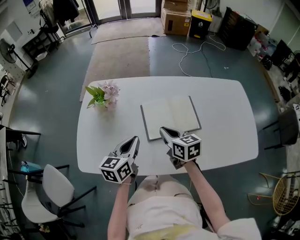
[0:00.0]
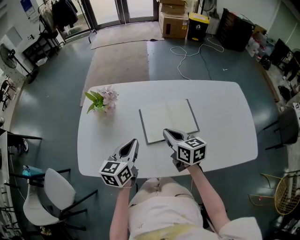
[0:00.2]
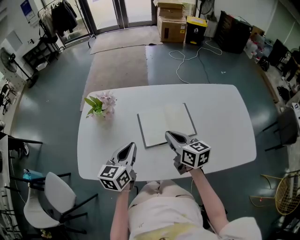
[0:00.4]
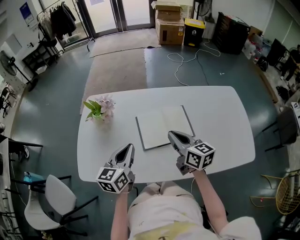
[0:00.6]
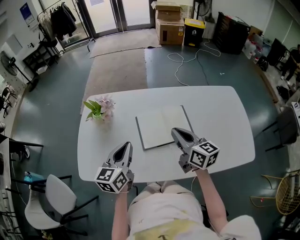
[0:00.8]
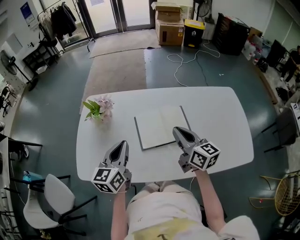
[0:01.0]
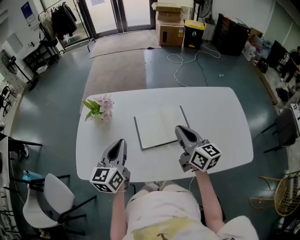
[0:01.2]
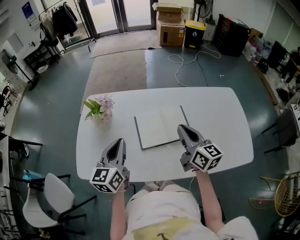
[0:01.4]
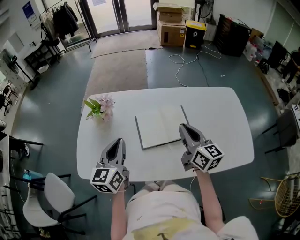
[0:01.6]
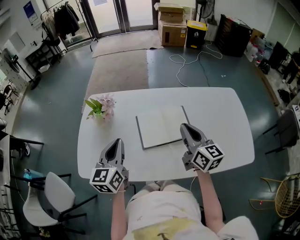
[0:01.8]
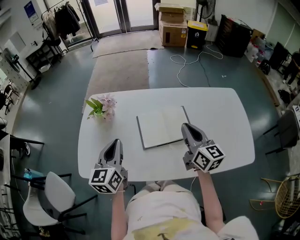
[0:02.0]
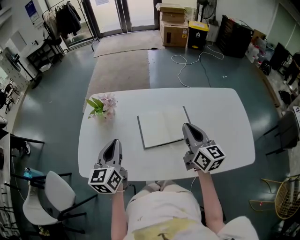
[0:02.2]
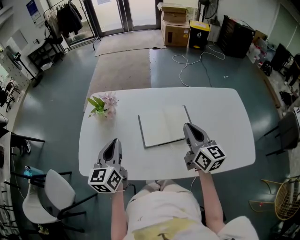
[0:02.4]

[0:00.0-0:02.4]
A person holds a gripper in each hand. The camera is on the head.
0:00.0 to 0:01.2: The right gripper travels upward and to the right by approximately 15 cm, and rotates some 20 degrees, while the left gripper is displaced upward by some 10 cm.
0:01.2 to 0:02.4: The grippers make only small movements.

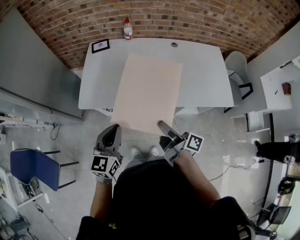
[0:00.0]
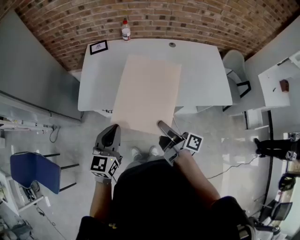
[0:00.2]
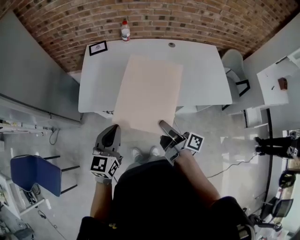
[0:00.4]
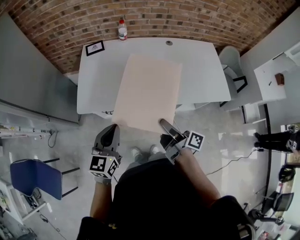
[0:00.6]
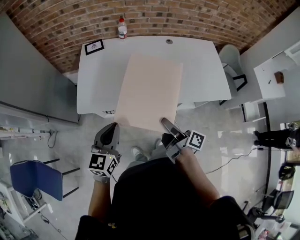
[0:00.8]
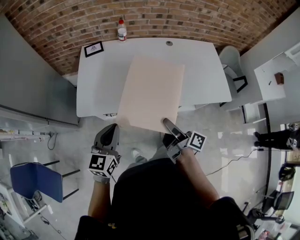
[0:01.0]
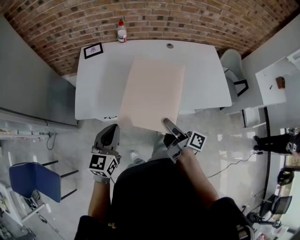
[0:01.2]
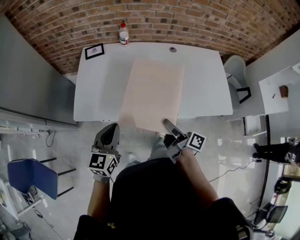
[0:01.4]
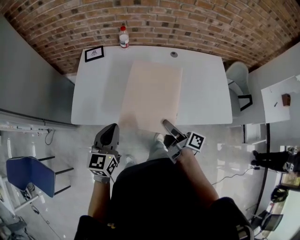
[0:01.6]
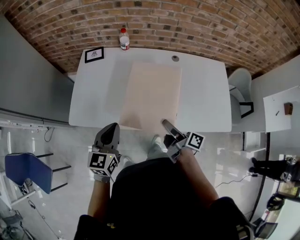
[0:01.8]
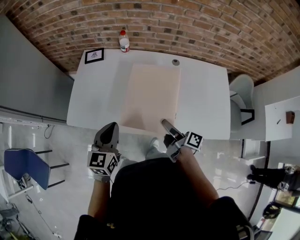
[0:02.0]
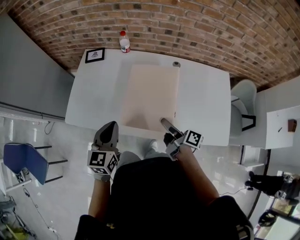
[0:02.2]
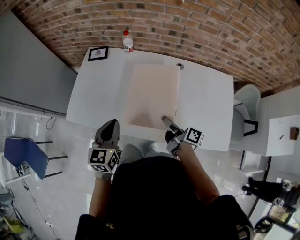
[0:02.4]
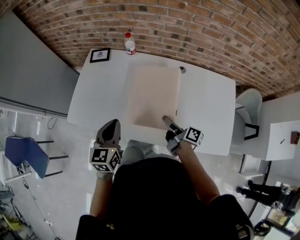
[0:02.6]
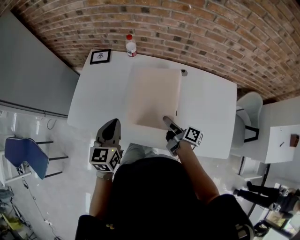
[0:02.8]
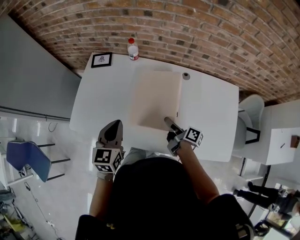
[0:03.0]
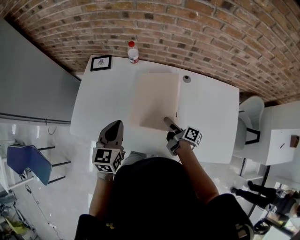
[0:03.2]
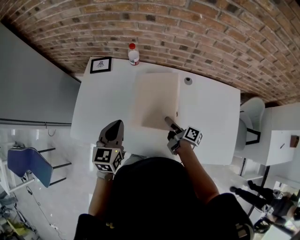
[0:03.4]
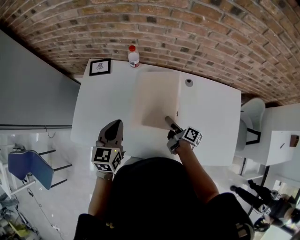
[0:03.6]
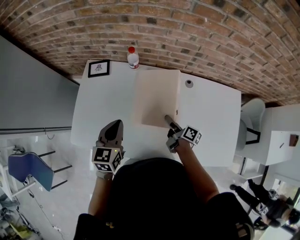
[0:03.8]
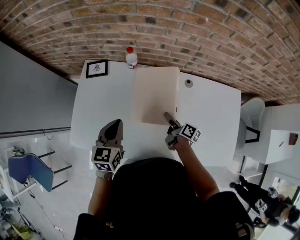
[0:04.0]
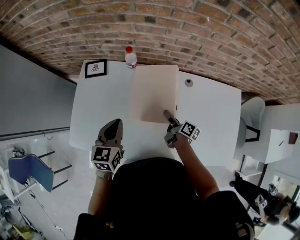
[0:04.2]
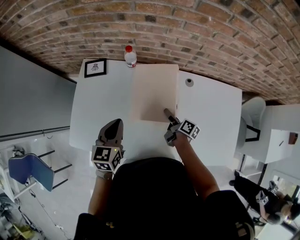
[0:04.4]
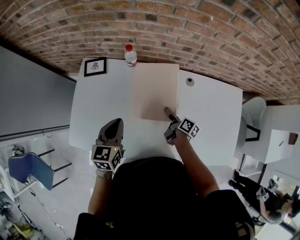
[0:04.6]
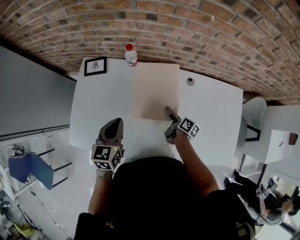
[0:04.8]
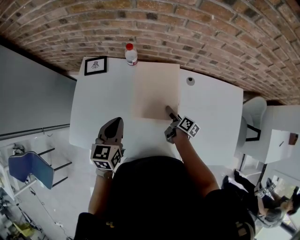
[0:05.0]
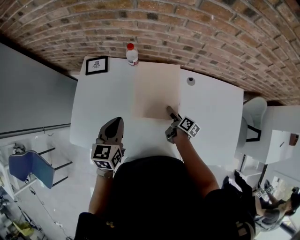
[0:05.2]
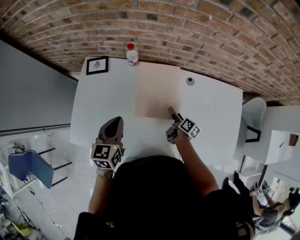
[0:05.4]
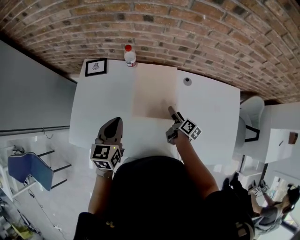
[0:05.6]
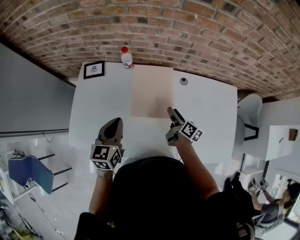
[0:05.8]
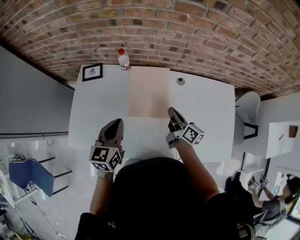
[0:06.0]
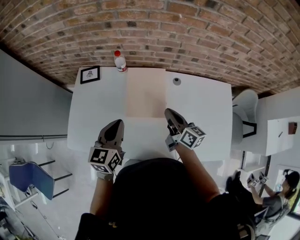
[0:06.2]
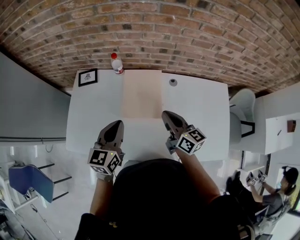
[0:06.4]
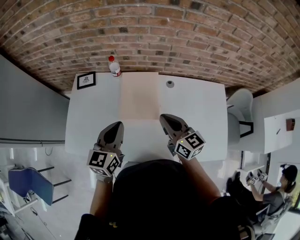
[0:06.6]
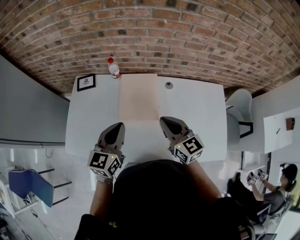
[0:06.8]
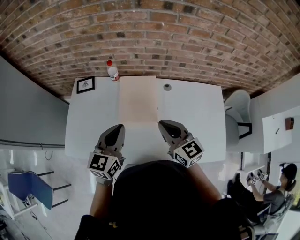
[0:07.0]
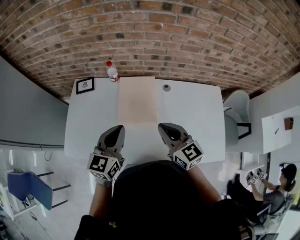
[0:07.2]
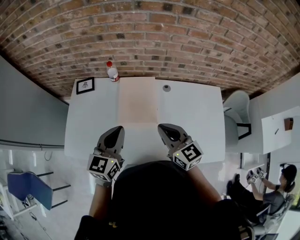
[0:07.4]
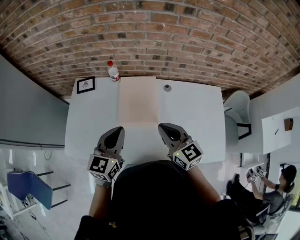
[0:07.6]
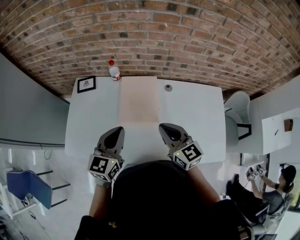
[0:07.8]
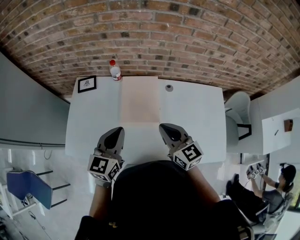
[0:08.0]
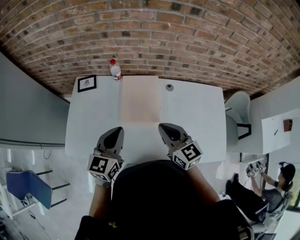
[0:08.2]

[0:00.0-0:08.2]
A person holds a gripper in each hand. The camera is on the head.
0:00.0 to 0:01.6: The right gripper shifts roughly 15 cm forward, to the right and downward. Meanwhile the left gripper moves forward, approximately 10 cm.
0:01.6 to 0:03.2: The left gripper travels forward and to the right by approximately 20 cm; the right gripper travels forward, to the right and downward by roughly 25 cm.
0:03.2 to 0:05.0: The left gripper goes about 10 cm forward. Meanwhile the right gripper moves forward and downward, about 15 cm, and changes its angle by approximately 20 degrees.
0:05.0 to 0:06.6: The left gripper is displaced upward, to the right and backward by about 15 cm. The right gripper is displaced upward by roughly 30 cm, twists roughly 50 degrees counterclockwise, seen from behind, and closes.
0:06.6 to 0:08.2: The grippers stay close to where they were, moving slightly.

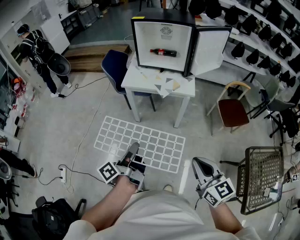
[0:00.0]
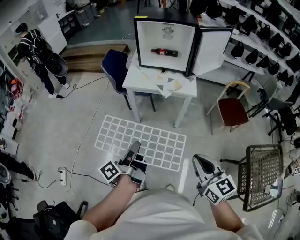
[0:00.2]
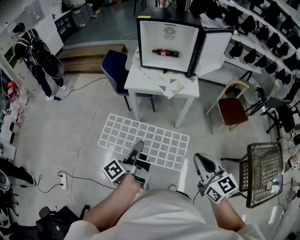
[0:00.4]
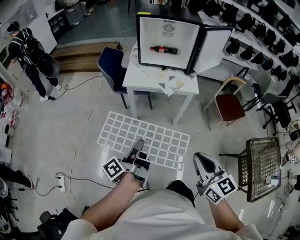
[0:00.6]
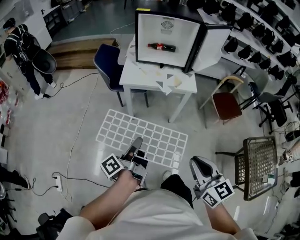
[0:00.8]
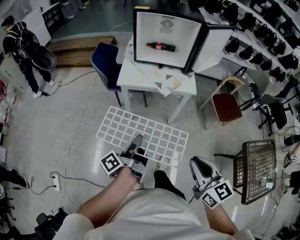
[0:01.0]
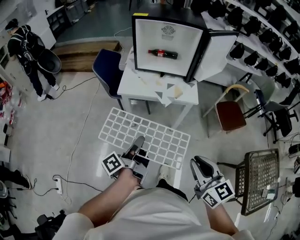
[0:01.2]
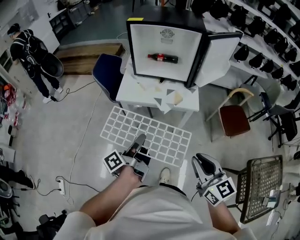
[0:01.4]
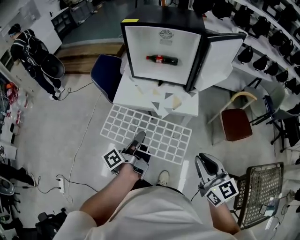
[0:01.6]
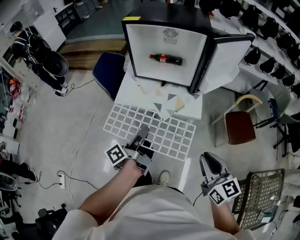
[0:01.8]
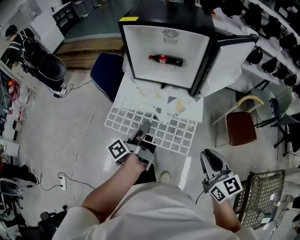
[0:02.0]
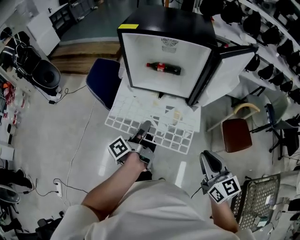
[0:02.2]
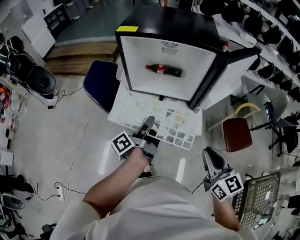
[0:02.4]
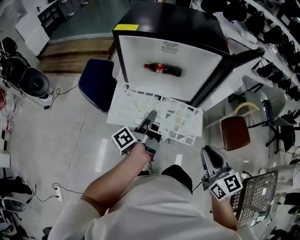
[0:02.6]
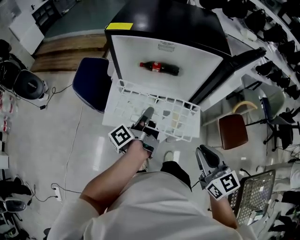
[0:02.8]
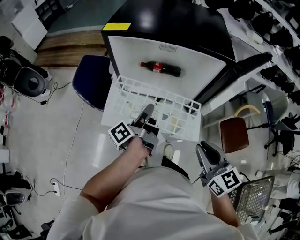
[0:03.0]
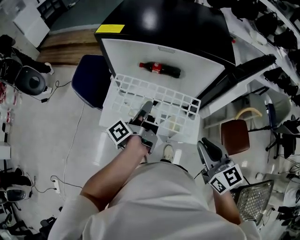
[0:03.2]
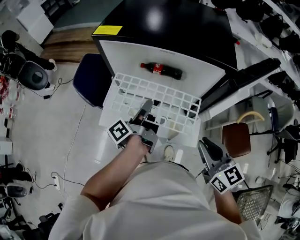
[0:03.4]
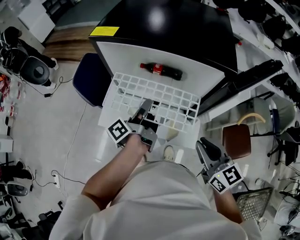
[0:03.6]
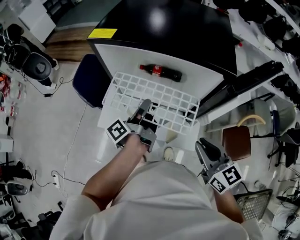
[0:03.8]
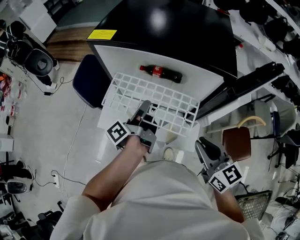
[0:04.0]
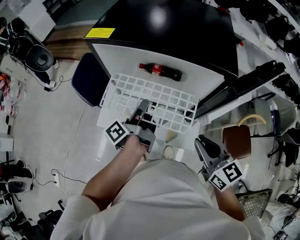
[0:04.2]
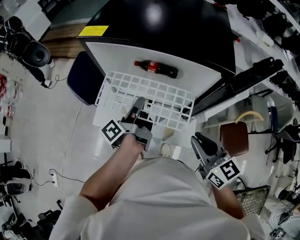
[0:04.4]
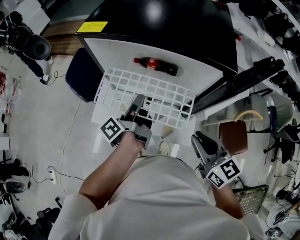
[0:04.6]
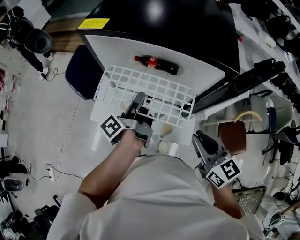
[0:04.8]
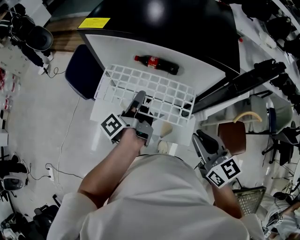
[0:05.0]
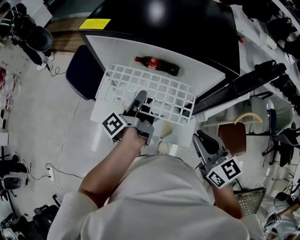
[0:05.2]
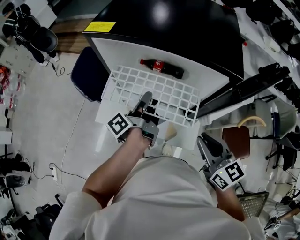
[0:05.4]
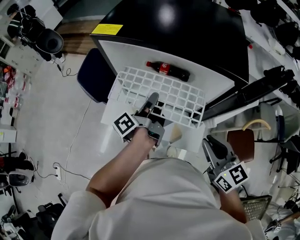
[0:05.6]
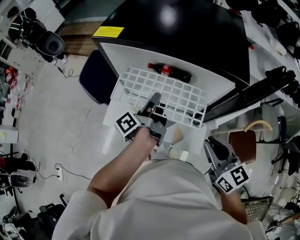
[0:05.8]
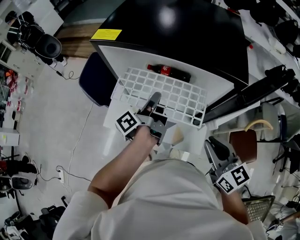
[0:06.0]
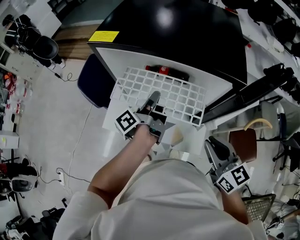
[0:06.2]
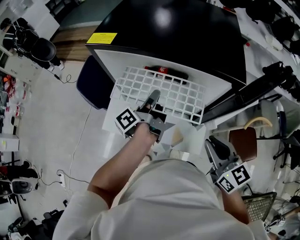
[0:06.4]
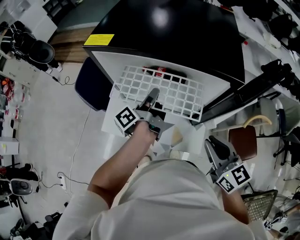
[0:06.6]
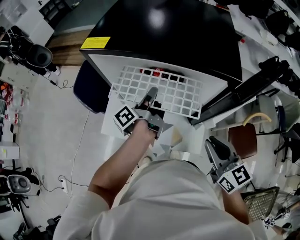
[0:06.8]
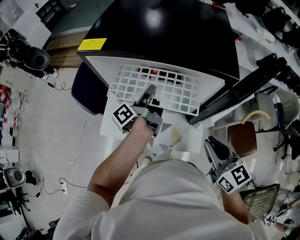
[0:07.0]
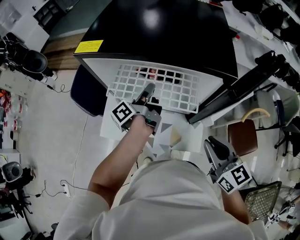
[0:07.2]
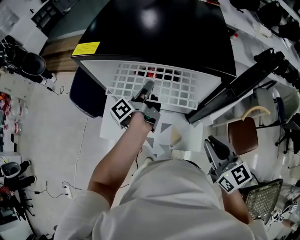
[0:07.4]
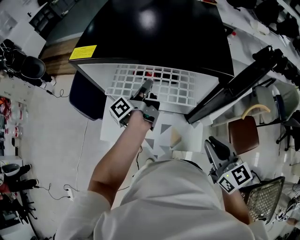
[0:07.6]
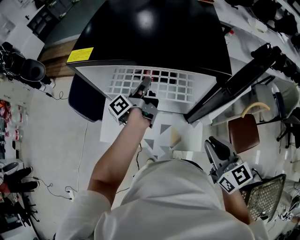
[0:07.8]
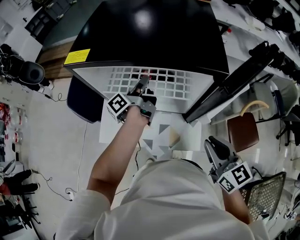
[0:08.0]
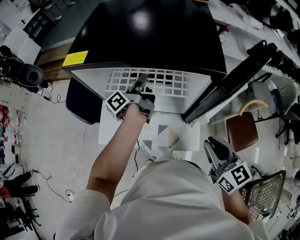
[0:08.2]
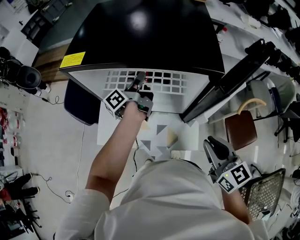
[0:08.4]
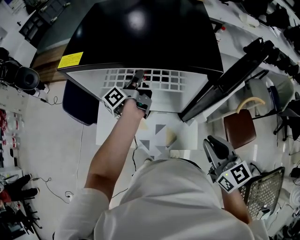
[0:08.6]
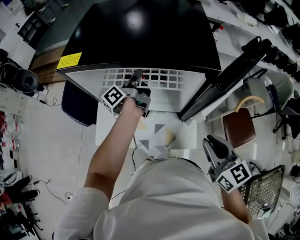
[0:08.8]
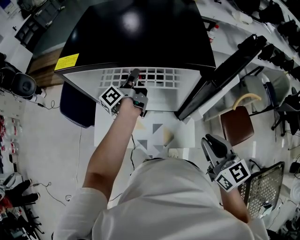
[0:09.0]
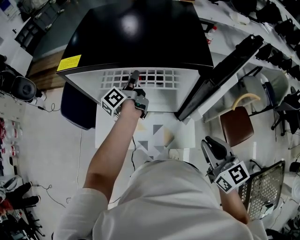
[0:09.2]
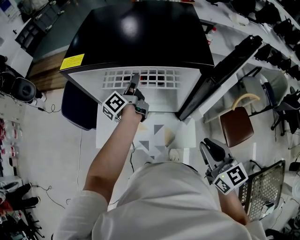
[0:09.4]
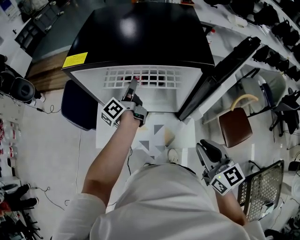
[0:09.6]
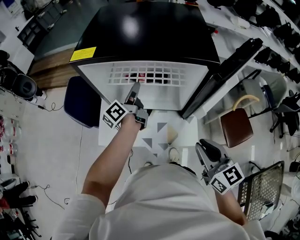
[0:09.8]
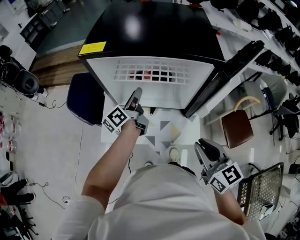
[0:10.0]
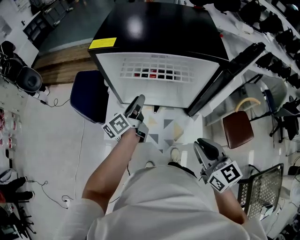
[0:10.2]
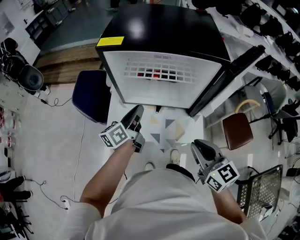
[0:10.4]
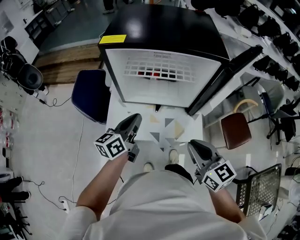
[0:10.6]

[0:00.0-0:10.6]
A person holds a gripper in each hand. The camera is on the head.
0:00.0 to 0:01.6: The right gripper moves approximately 20 cm.
0:01.6 to 0:03.0: The right gripper shifts by approximately 25 cm.
0:03.0 to 0:04.6: The right gripper shifts by about 10 cm.
0:09.0 to 0:10.6: The right gripper changes place by roughly 15 cm.

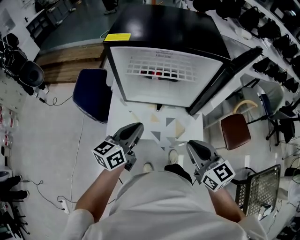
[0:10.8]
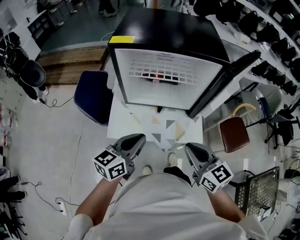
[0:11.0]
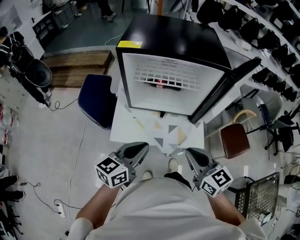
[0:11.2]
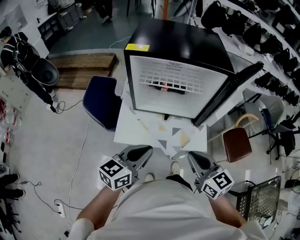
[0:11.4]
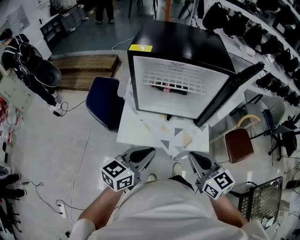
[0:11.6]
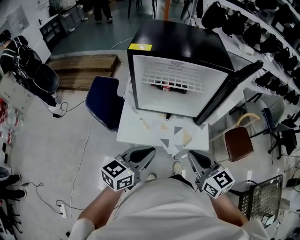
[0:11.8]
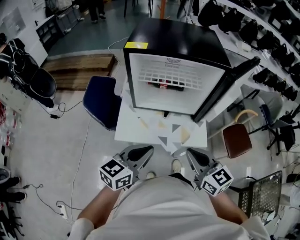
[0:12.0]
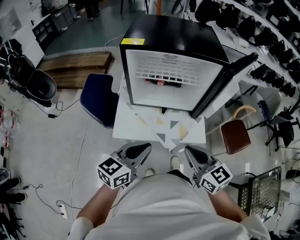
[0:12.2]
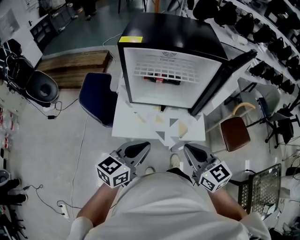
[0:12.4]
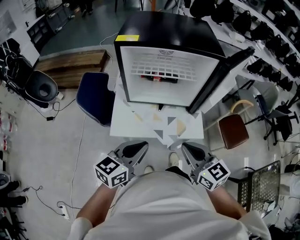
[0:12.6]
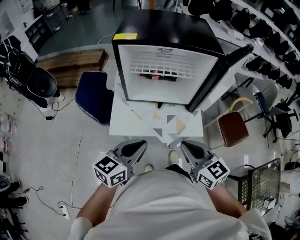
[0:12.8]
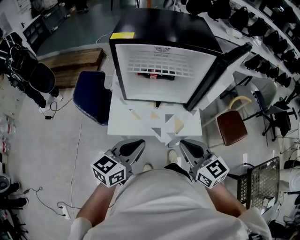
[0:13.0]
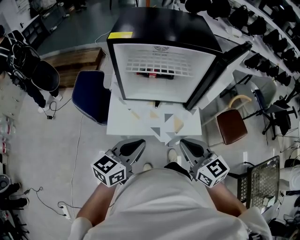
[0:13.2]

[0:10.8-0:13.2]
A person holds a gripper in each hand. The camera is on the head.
0:10.8 to 0:12.0: The right gripper changes place by roughly 5 cm.
